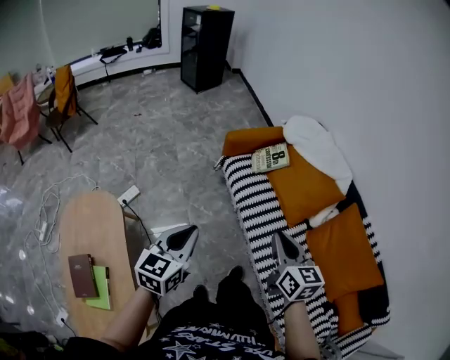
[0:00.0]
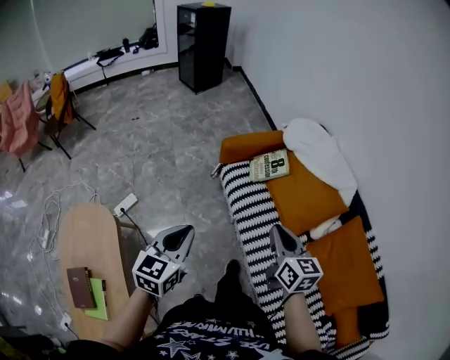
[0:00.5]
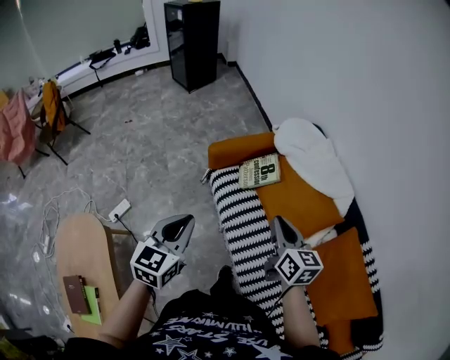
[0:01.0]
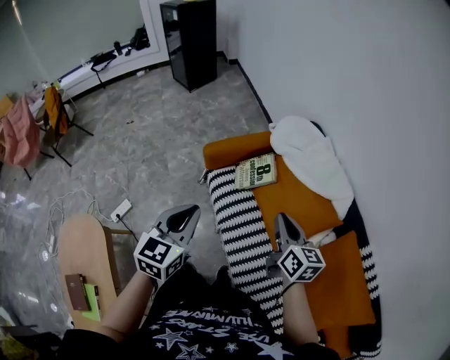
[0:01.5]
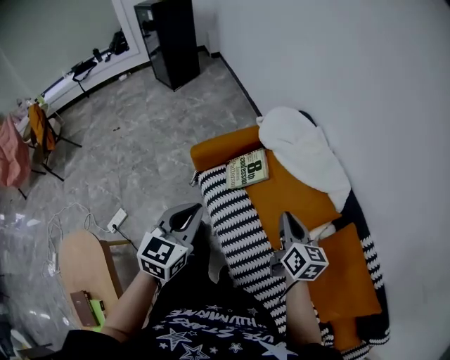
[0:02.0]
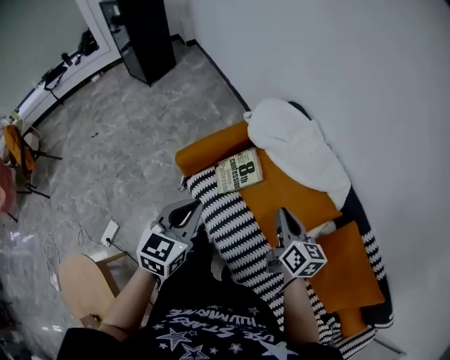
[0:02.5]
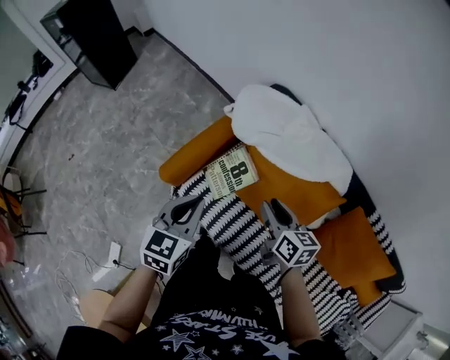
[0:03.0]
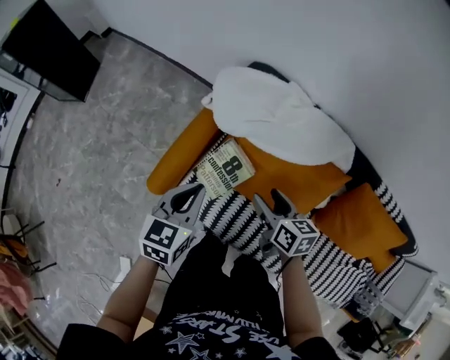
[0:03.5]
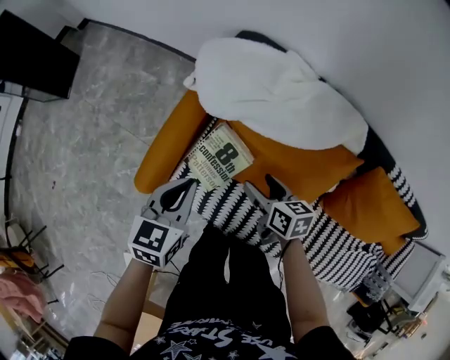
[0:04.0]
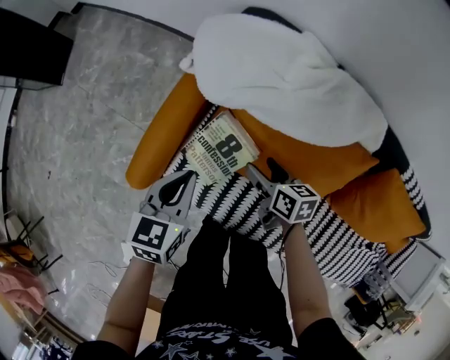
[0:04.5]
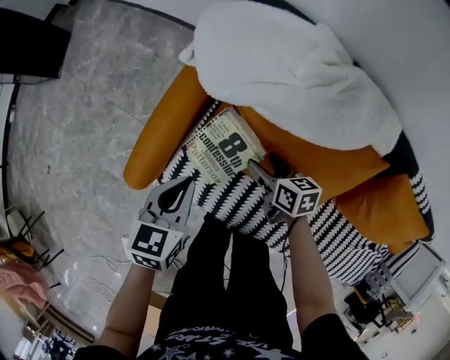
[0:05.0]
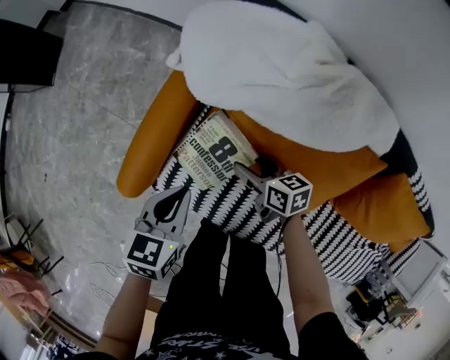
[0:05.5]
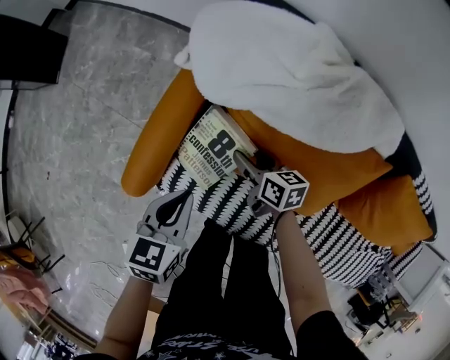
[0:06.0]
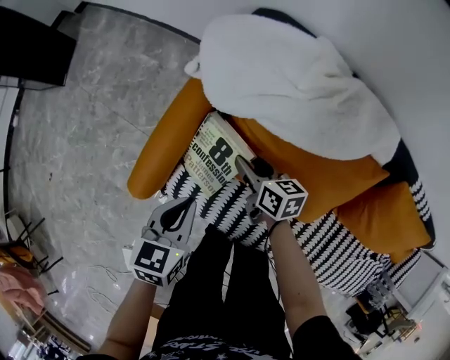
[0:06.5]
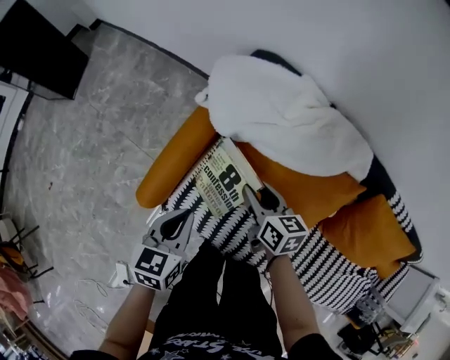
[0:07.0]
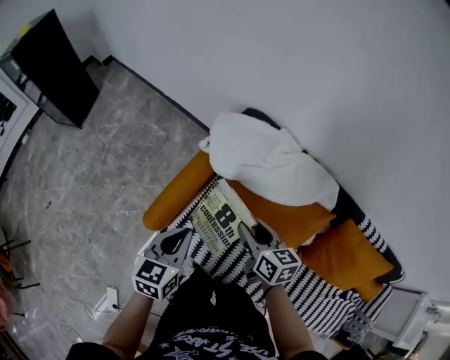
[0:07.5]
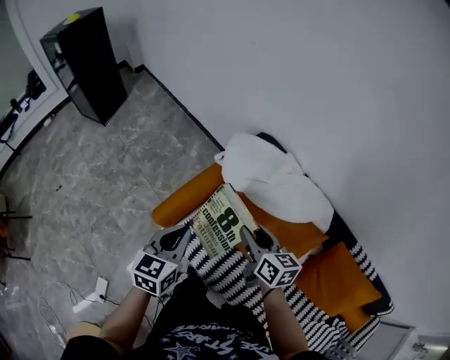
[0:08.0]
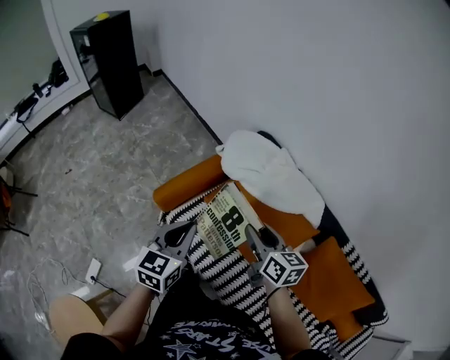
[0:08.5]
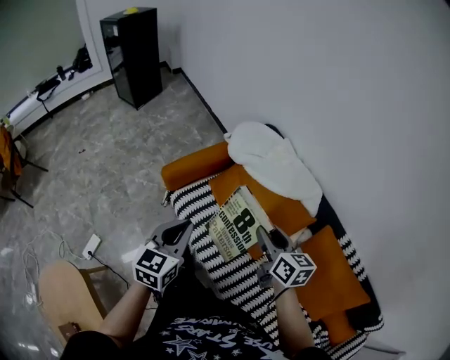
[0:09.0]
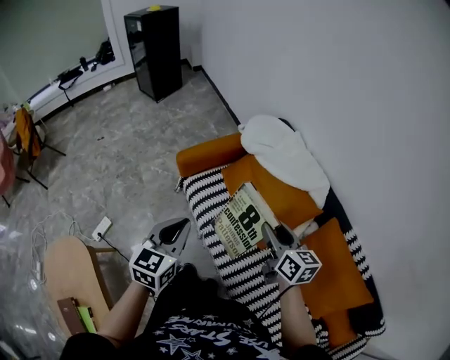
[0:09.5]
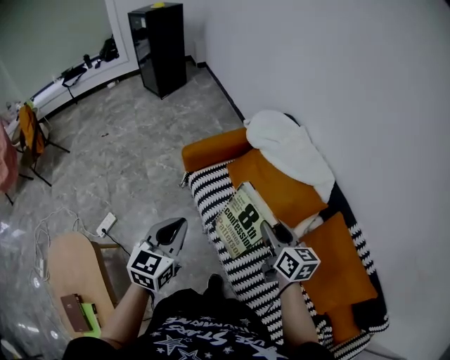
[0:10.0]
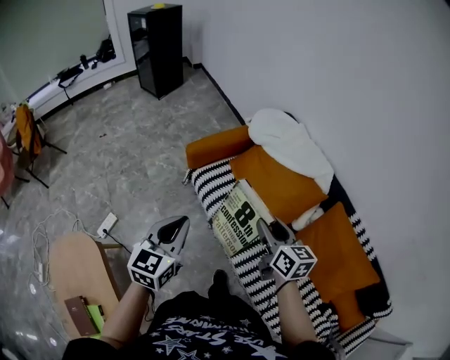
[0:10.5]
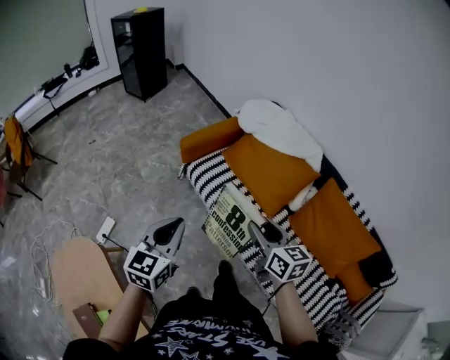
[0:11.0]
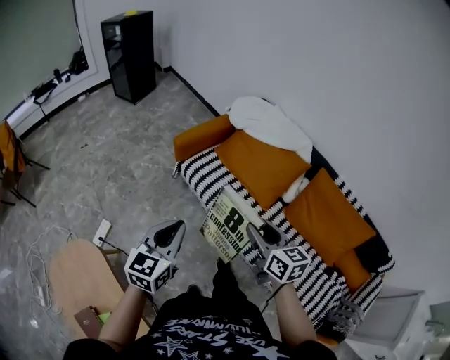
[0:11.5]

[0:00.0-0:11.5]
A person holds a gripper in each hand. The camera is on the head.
0:00.0 to 0:02.0: Both grippers move forward and to the right, approximately 35 cm.
0:02.0 to 0:04.0: The left gripper changes place by roughly 40 cm, and changes its angle by some 40 degrees, while the right gripper heads downward, covering about 25 cm, turns by about 30 degrees, and opens.
0:04.0 to 0:06.0: The left gripper heads downward, covering about 10 cm; the right gripper heads downward and forward, covering about 15 cm.
0:06.0 to 0:07.5: The two grippers go about 30 cm forward and to the left.
0:07.5 to 0:09.5: The right gripper shifts roughly 35 cm backward, upward and to the right, and rotates approximately 20 degrees; the left gripper heads backward and upward, covering roughly 40 cm, and changes its angle by some 30 degrees.
0:09.5 to 0:11.5: Both grippers travel together backward and to the left, about 25 cm.

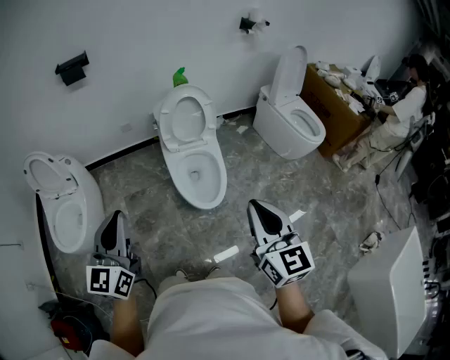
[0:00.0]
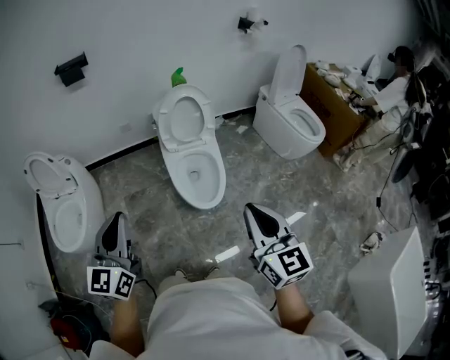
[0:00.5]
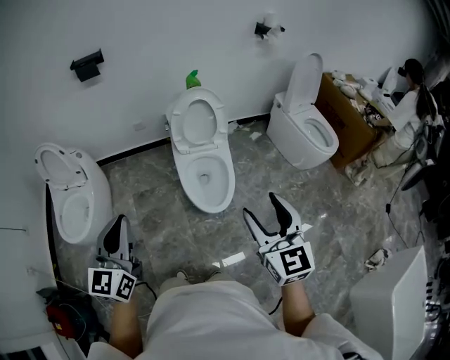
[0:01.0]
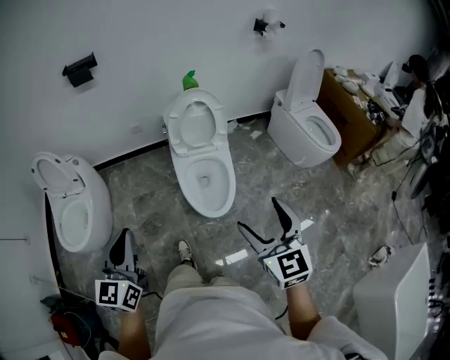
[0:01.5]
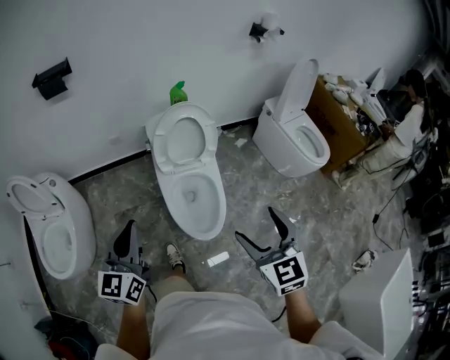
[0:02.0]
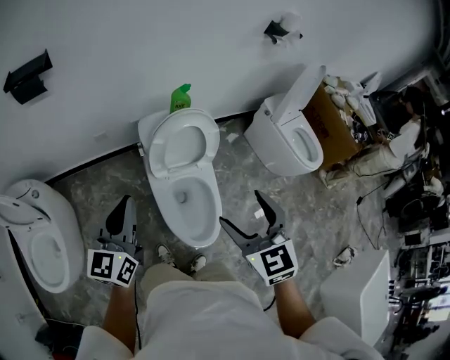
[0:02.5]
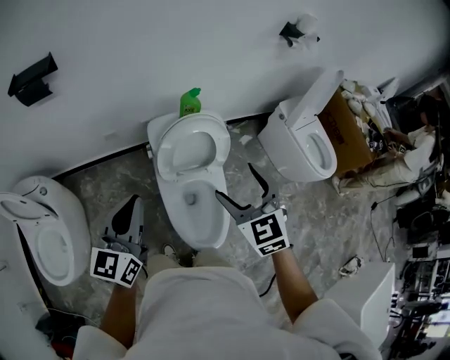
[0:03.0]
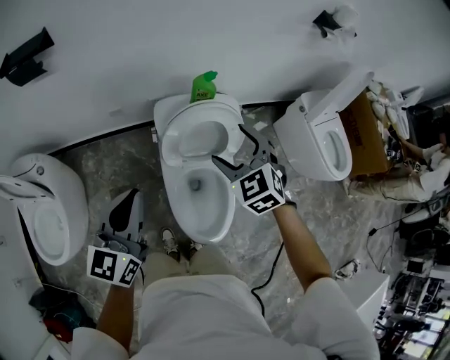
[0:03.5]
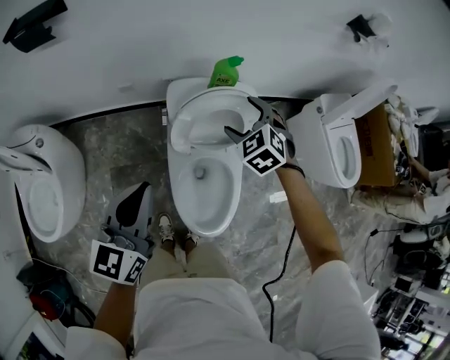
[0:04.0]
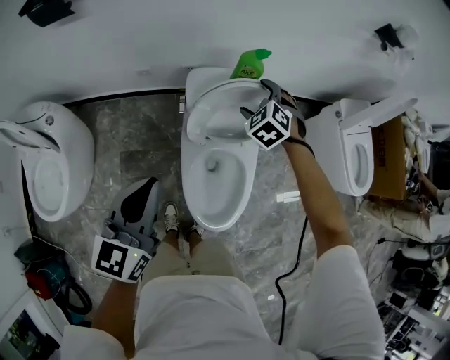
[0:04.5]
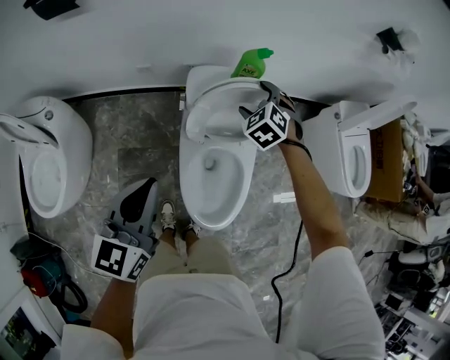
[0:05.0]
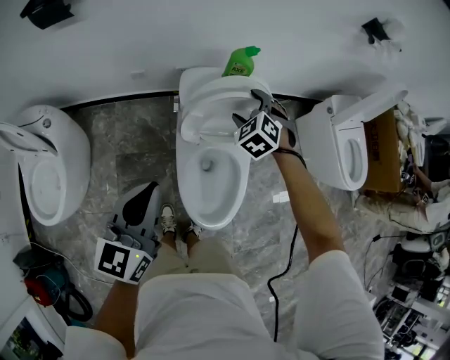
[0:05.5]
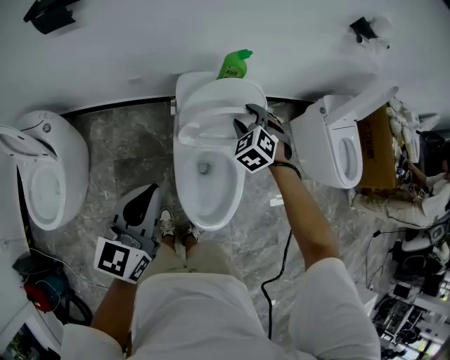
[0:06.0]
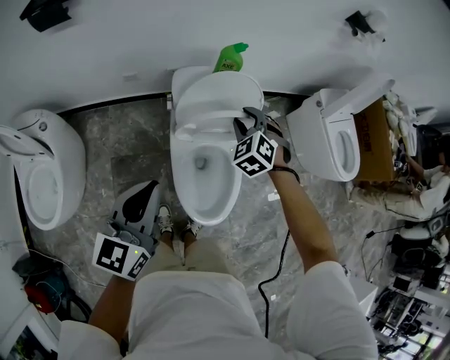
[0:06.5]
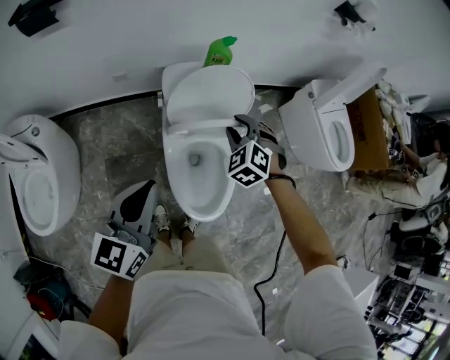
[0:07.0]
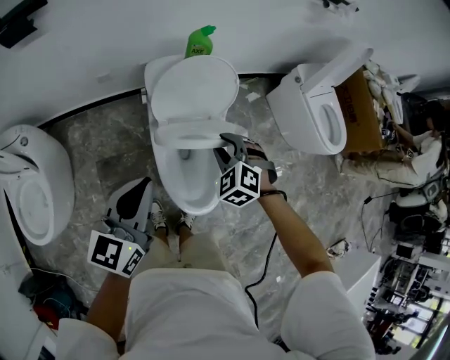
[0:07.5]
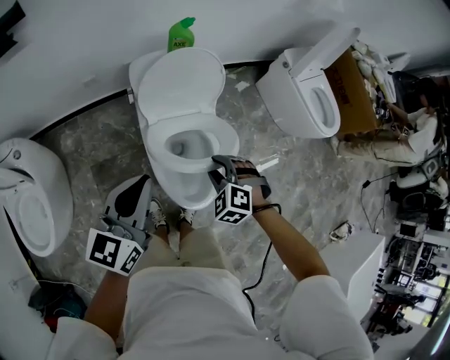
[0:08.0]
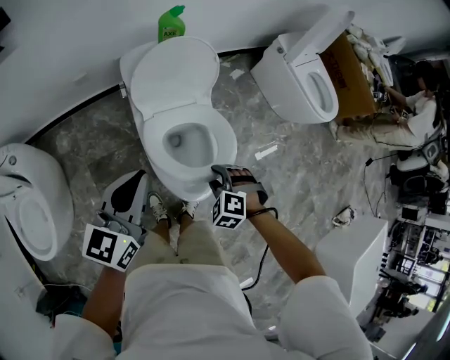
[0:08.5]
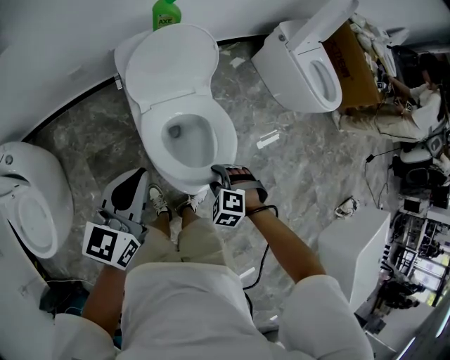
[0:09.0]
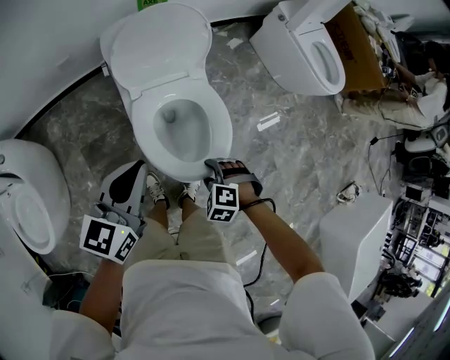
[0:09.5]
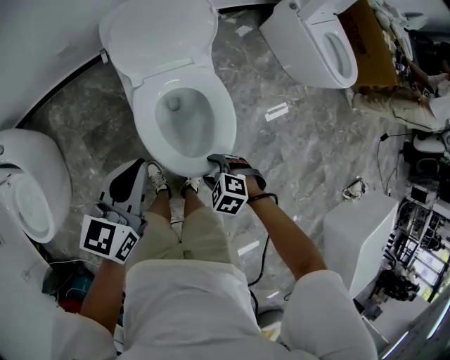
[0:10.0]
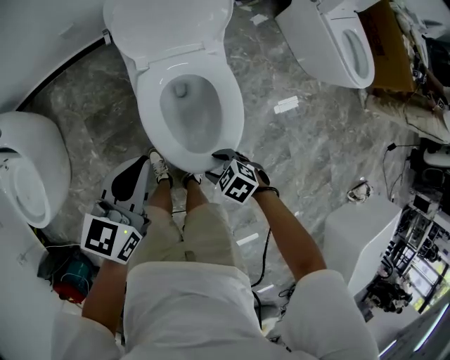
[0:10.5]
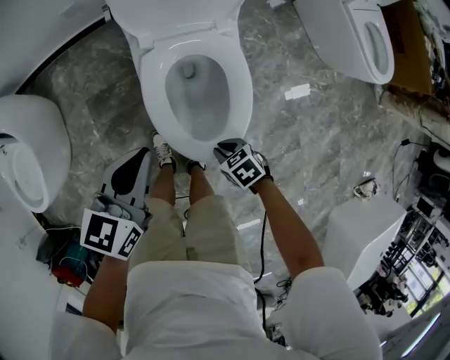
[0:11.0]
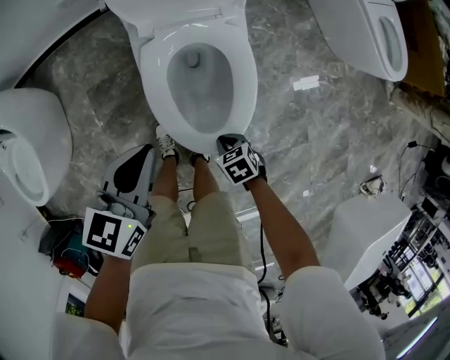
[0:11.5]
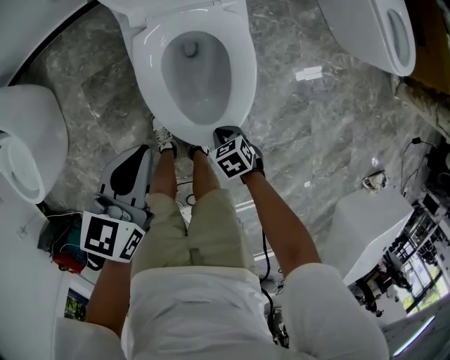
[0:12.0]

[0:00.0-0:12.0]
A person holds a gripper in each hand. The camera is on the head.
0:00.0 to 0:02.0: Both grippers travel together forward, roughly 20 cm. The right gripper turns by roughly 20 degrees, and opens up.
0:02.0 to 0:04.0: The left gripper shifts some 25 cm forward. The right gripper moves forward, approximately 50 cm, and changes its angle by roughly 40 degrees.
0:04.0 to 0:06.0: The right gripper closes; the left gripper goes roughly 5 cm backward.
0:06.0 to 0:08.0: The left gripper shifts roughly 5 cm to the right. The right gripper heads backward, covering some 25 cm.
0:08.0 to 0:10.0: The grippers both shift downward by roughly 15 cm. The right gripper swivels about 30 degrees.
0:10.0 to 0:12.0: Both grippers move downward, some 15 cm. The right gripper swivels about 30 degrees, and closes up.

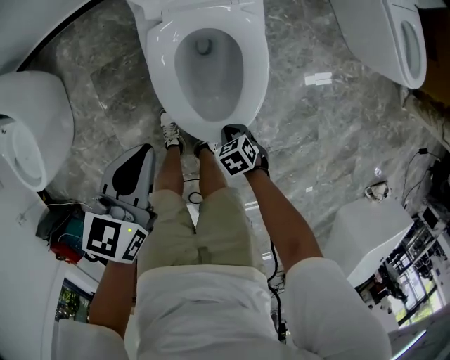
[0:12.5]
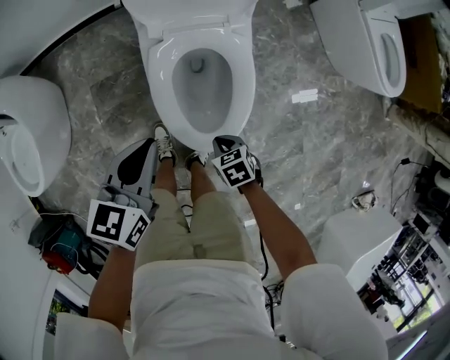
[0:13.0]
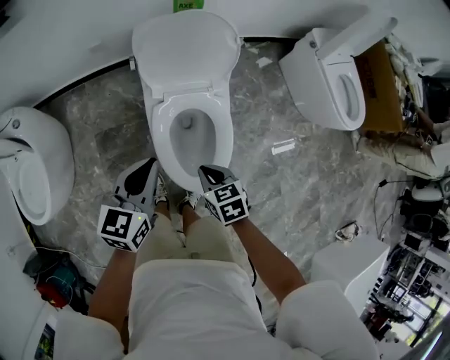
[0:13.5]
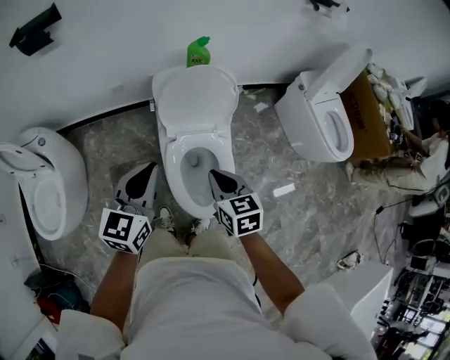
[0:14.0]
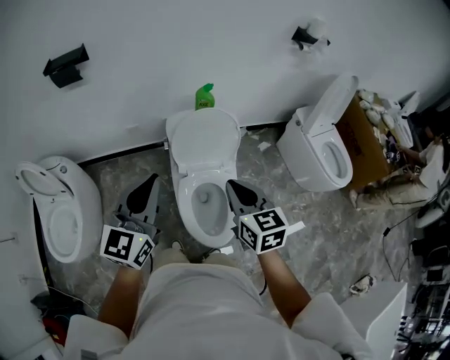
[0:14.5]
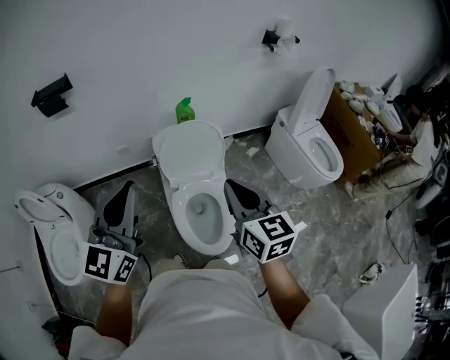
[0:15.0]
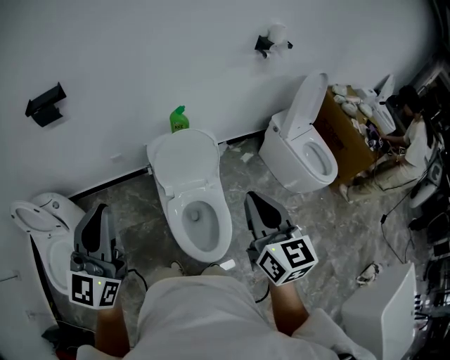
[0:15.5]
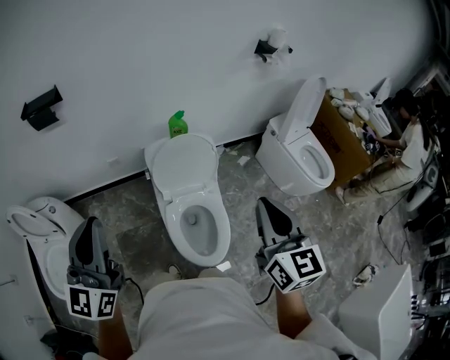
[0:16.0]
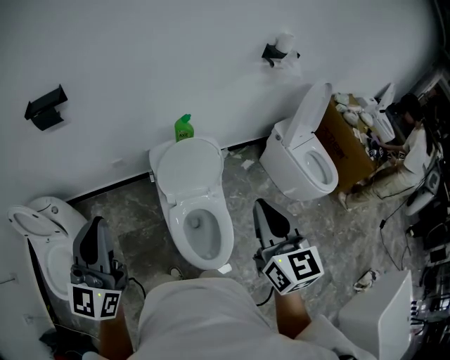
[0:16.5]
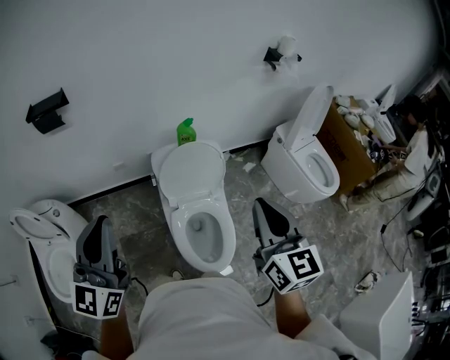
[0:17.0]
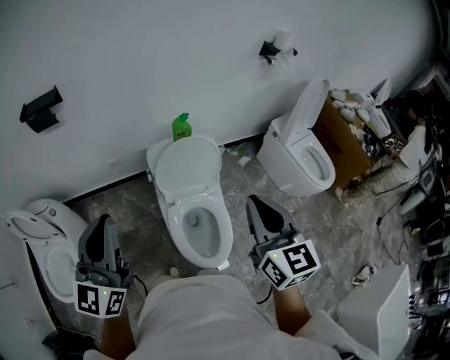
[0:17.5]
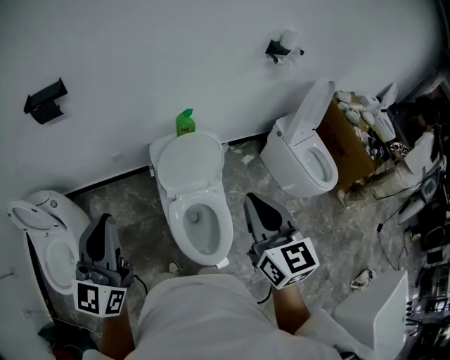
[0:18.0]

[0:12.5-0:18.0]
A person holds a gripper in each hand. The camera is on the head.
0:12.5 to 0:14.5: The left gripper heads upward, covering roughly 40 cm, and tilts its fingers some 40 degrees upward. Meanwhile the right gripper is displaced upward by roughly 60 cm, and tips its fingers upward by about 50 degrees.
0:14.5 to 0:16.0: The left gripper is displaced upward and to the left by roughly 10 cm. Meanwhile the right gripper is displaced upward and to the right by approximately 15 cm, and changes its angle by roughly 20 degrees.
0:16.0 to 0:18.0: The right gripper shifts by some 5 cm.
